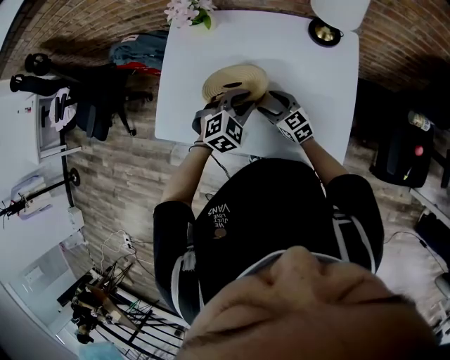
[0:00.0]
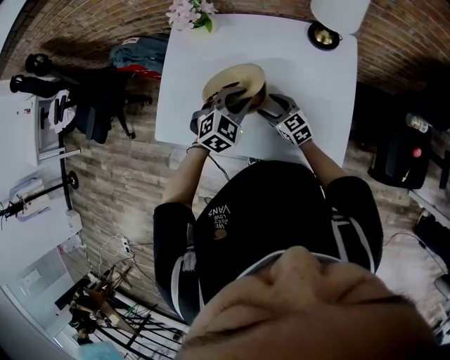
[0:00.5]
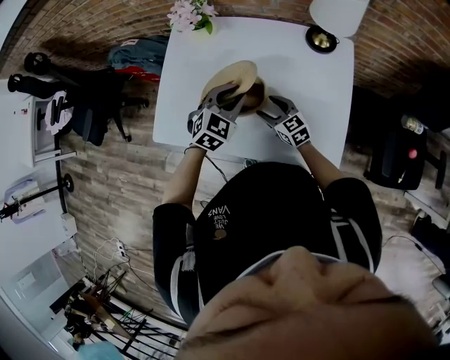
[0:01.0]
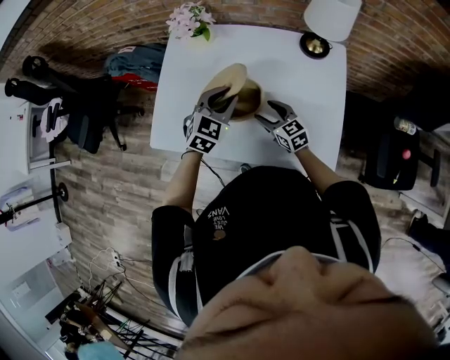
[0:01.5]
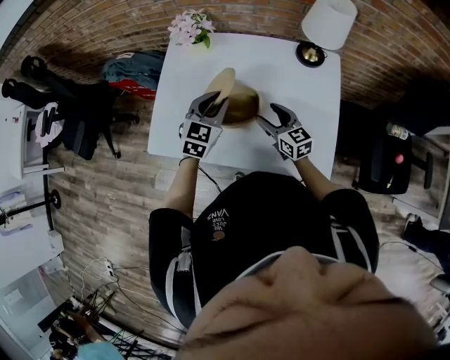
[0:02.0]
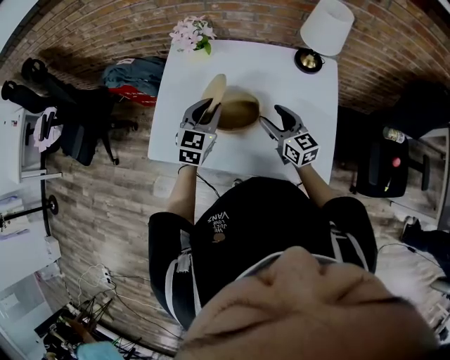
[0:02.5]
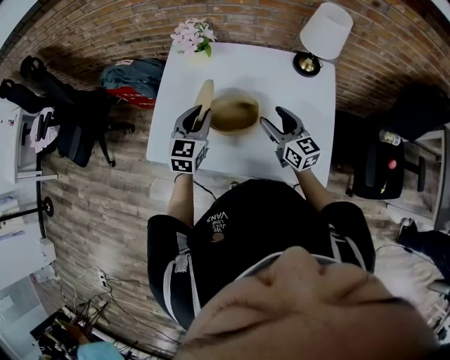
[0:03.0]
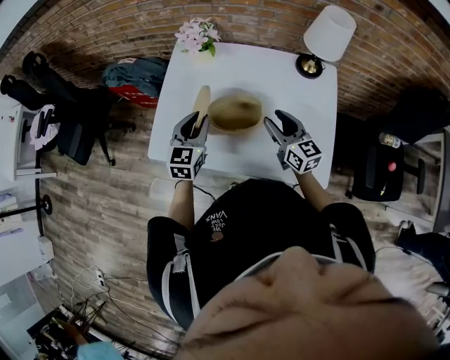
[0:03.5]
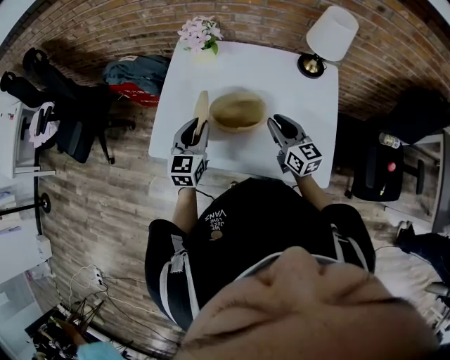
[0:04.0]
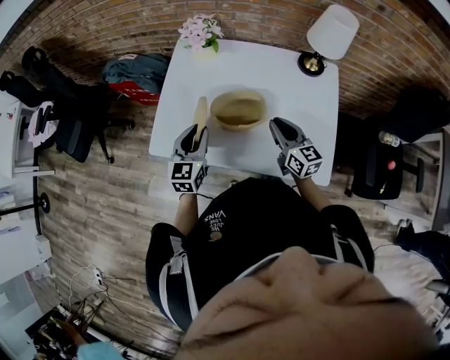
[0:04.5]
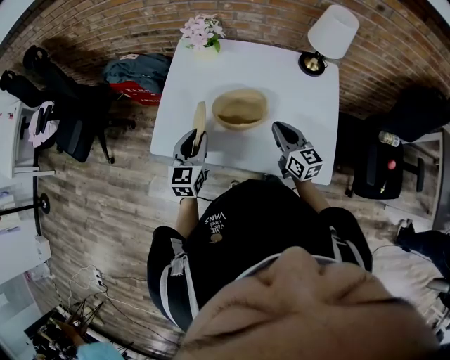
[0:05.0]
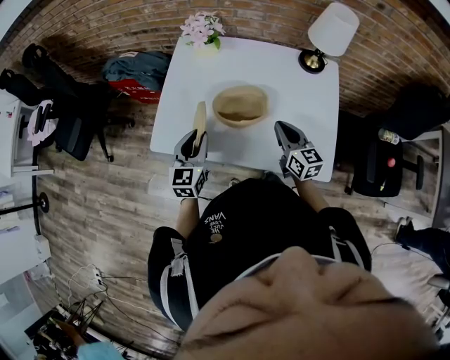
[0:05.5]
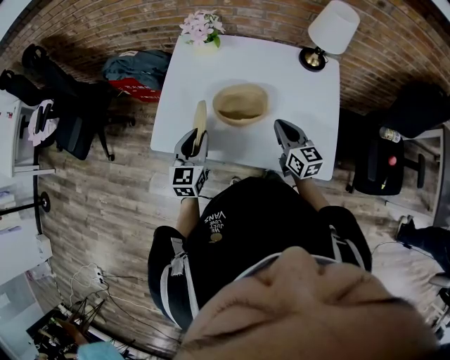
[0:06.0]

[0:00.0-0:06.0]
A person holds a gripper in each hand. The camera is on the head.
0:00.0 to 0:02.0: The right gripper goes roughly 10 cm upward, while the left gripper goes roughly 10 cm upward and to the left, and rotates approximately 30 degrees.
0:02.0 to 0:04.0: The right gripper shifts roughly 5 cm upward, and closes its fingers. Meanwhile the left gripper moves to the left and backward, roughly 10 cm, and rotates roughly 20 degrees.
0:04.0 to 0:06.0: The left gripper shifts about 5 cm backward.

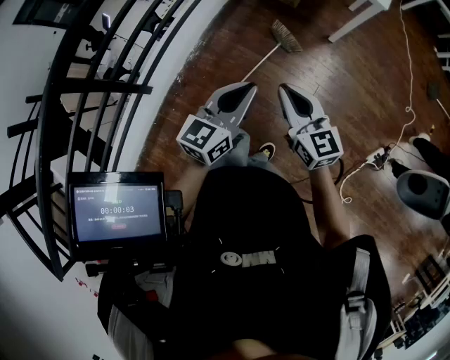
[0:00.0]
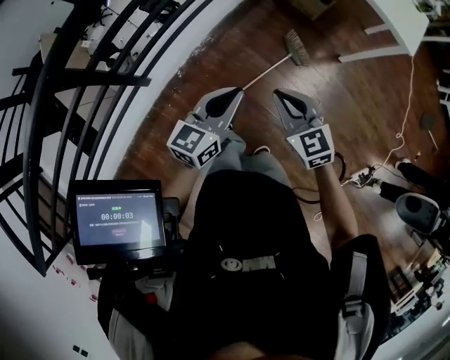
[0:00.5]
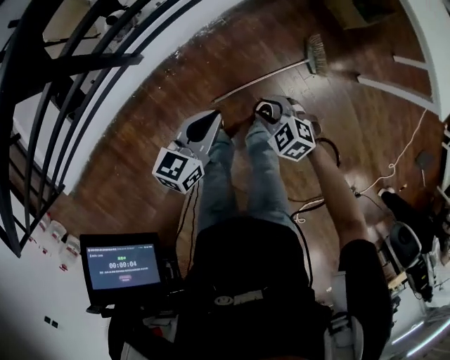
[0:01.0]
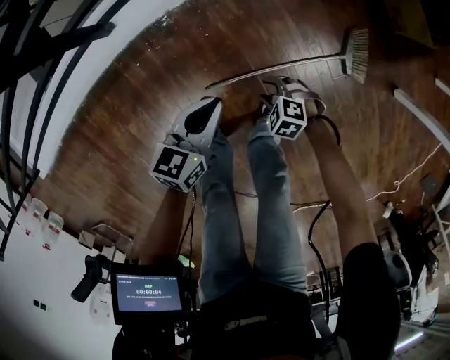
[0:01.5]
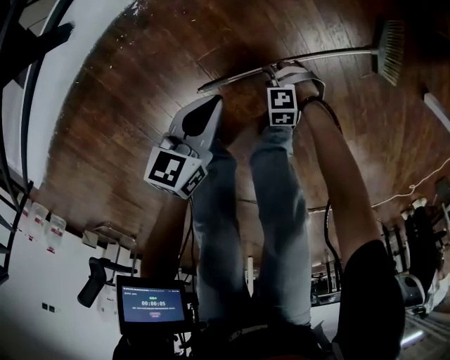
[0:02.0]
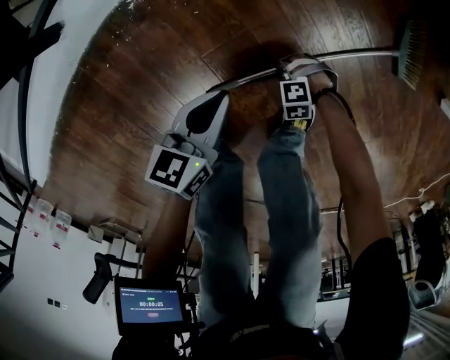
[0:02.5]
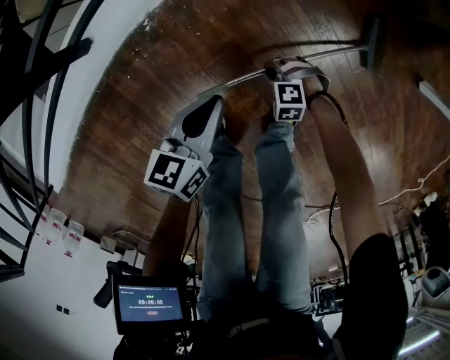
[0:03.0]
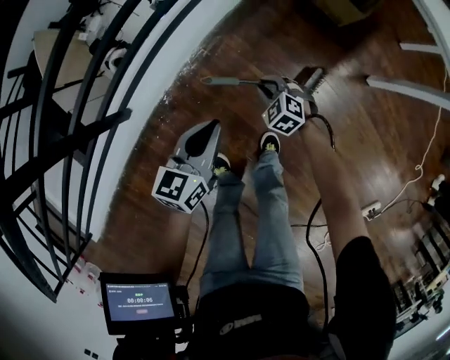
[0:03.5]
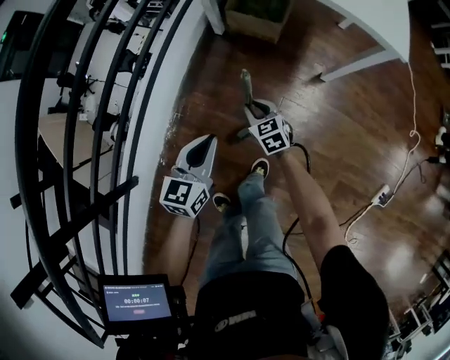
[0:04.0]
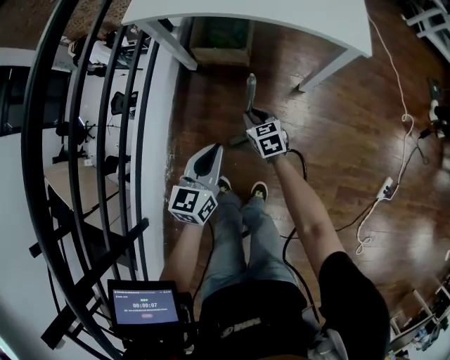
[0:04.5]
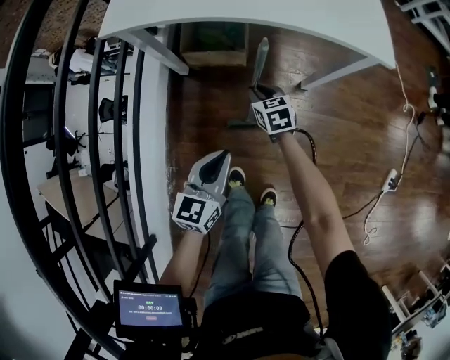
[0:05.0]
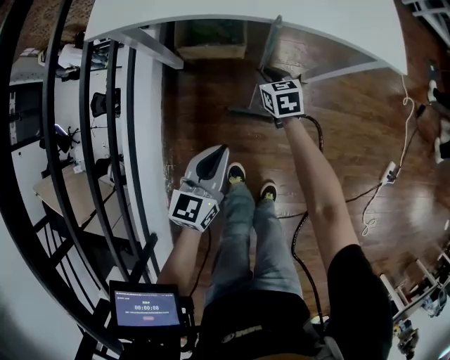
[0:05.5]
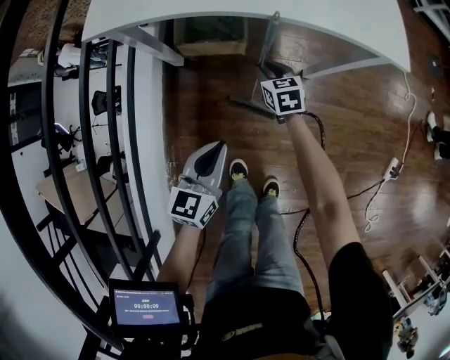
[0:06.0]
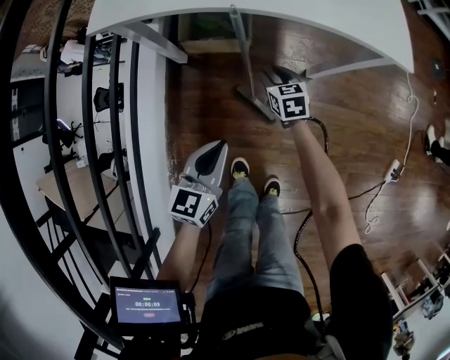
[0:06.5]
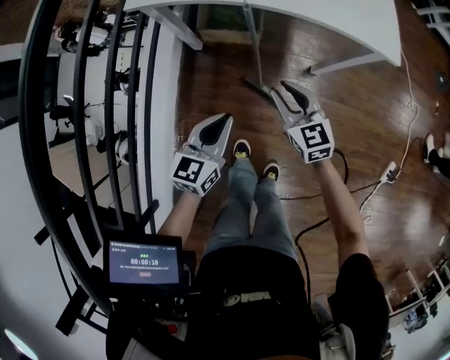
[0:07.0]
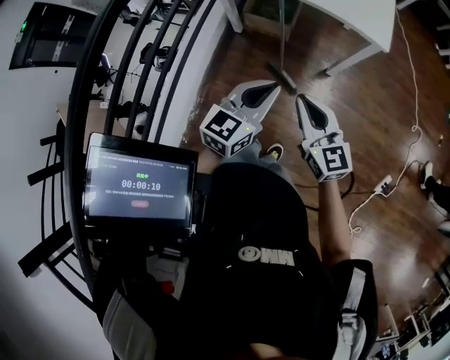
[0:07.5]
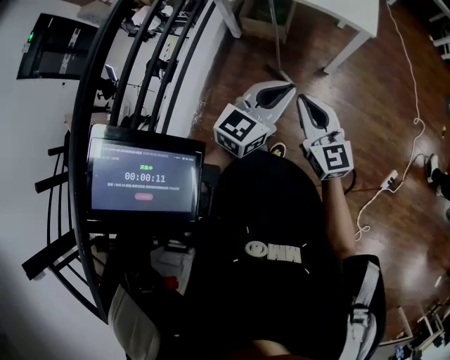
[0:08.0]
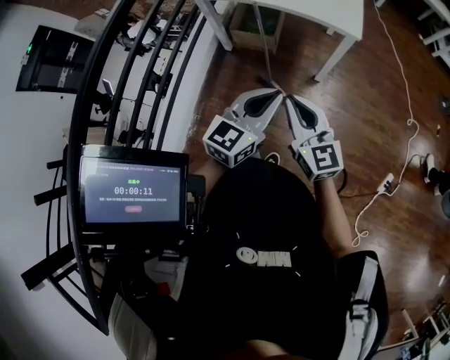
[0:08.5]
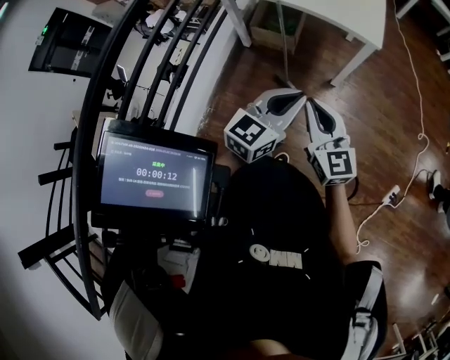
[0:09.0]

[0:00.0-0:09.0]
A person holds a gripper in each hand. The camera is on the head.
0:00.0 to 0:02.0: Both grippers move downward, roughly 80 cm. The left gripper turns by some 50 degrees. Meanwhile the right gripper tilts its fingers about 70 degrees downward, and opens.
0:02.0 to 0:04.5: The pair of grippers is taken approximately 40 cm. Both grippers move upward, approximately 50 cm. The left gripper turns by approximately 50 degrees. The right gripper twists roughly 110 degrees clockwise, seen from behind, and closes.
0:04.5 to 0:07.0: The right gripper shifts some 15 cm upward. The left gripper changes place by roughly 5 cm.
0:07.0 to 0:09.0: The left gripper moves to the right and upward, about 15 cm; the right gripper travels upward by some 10 cm, rotates about 20 degrees, and closes.

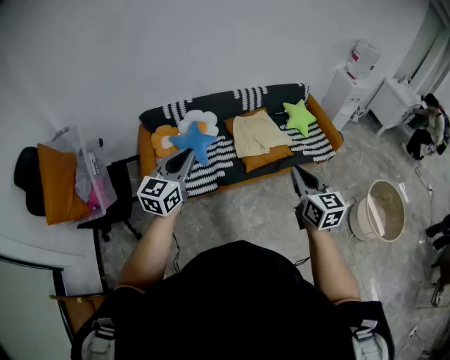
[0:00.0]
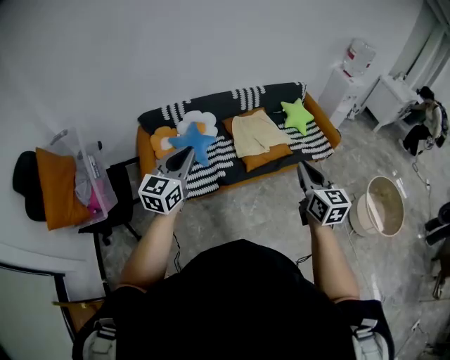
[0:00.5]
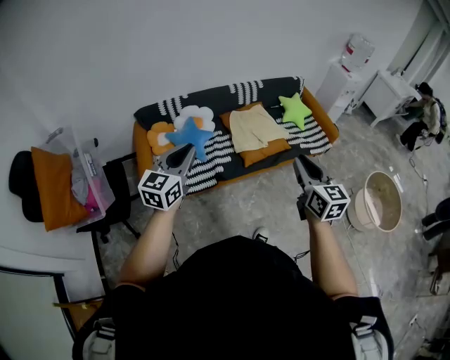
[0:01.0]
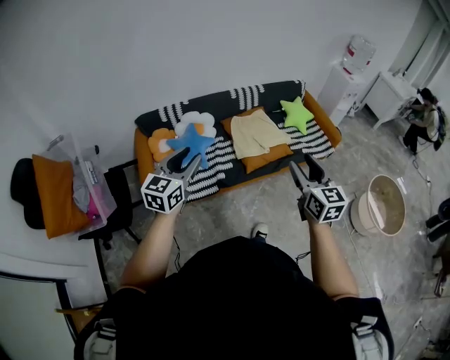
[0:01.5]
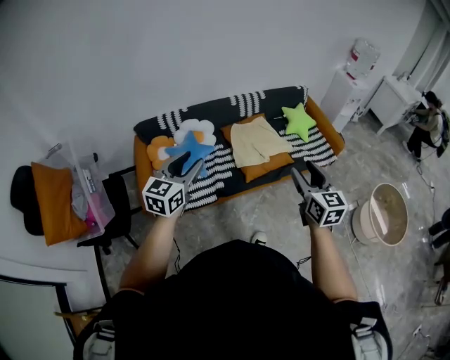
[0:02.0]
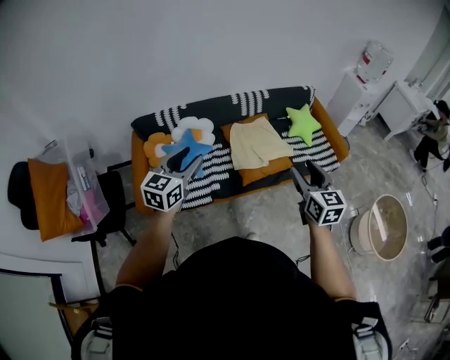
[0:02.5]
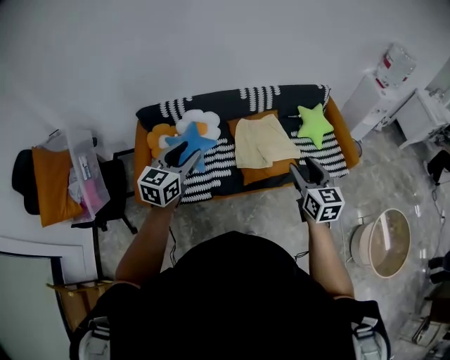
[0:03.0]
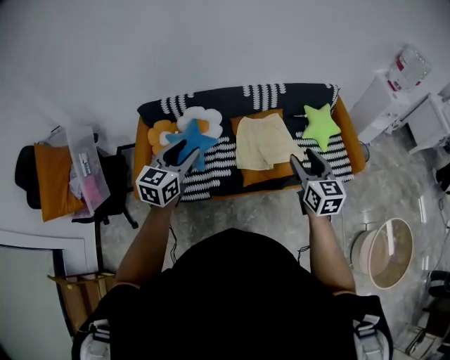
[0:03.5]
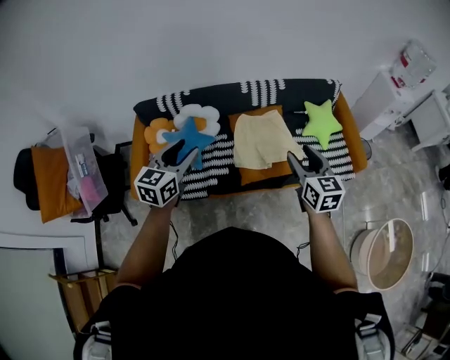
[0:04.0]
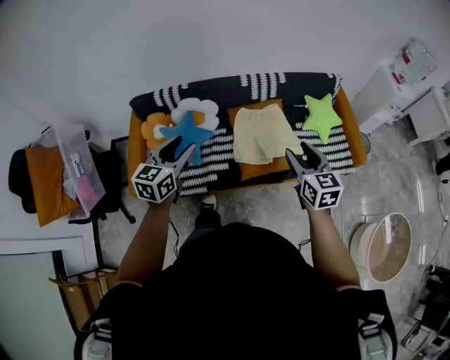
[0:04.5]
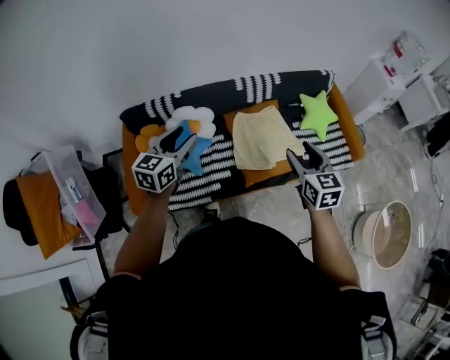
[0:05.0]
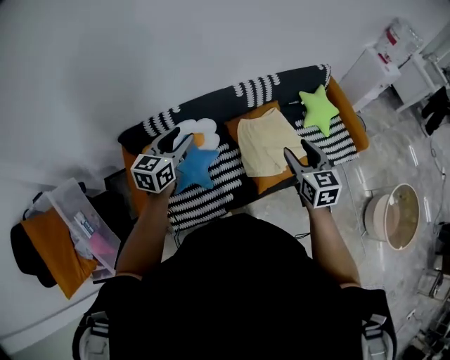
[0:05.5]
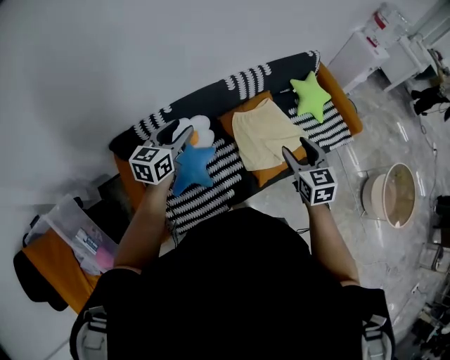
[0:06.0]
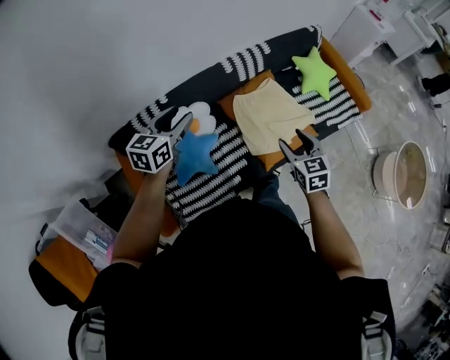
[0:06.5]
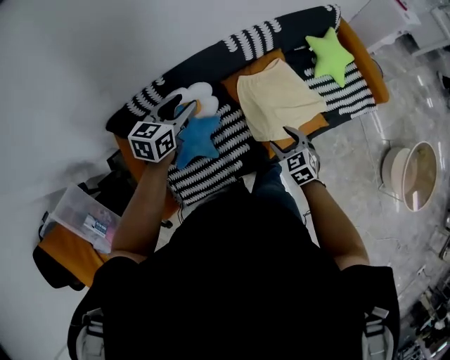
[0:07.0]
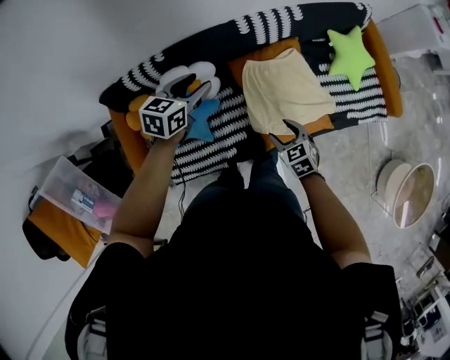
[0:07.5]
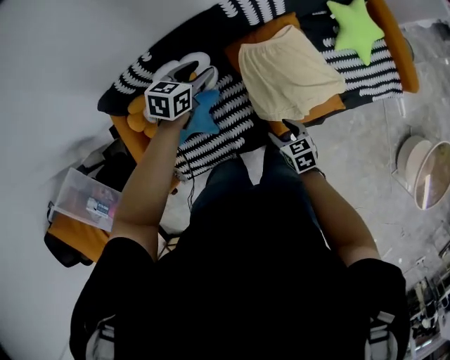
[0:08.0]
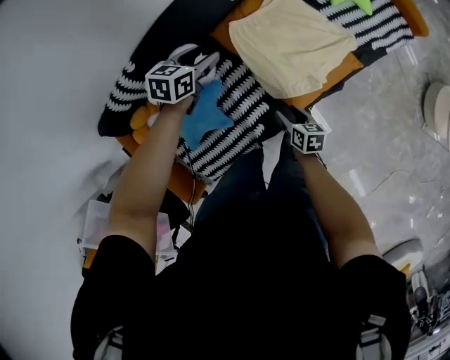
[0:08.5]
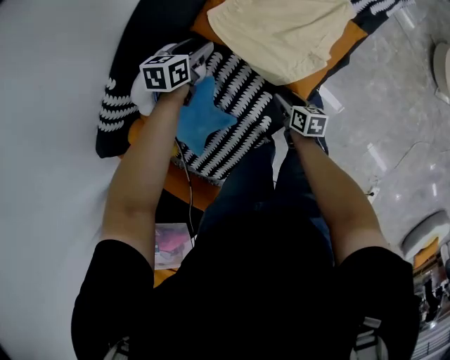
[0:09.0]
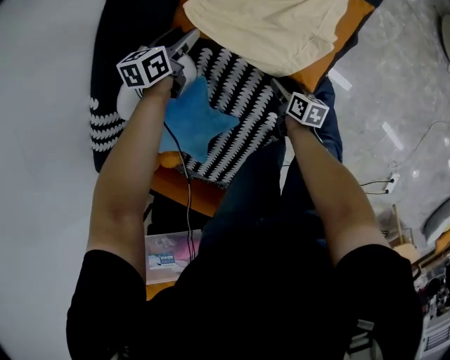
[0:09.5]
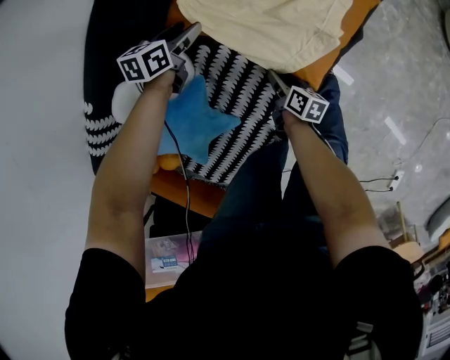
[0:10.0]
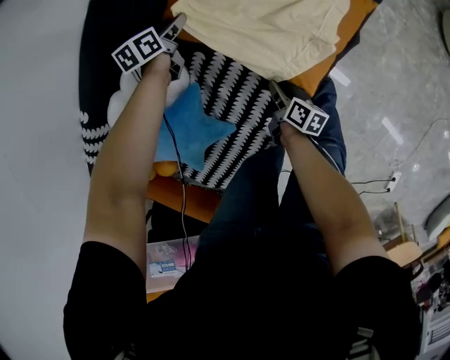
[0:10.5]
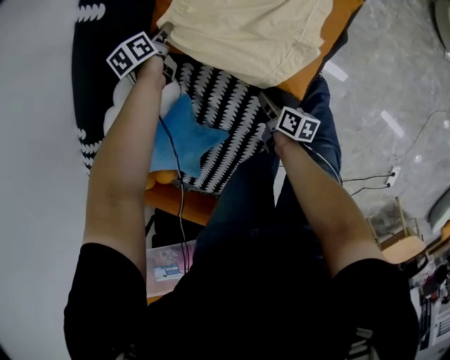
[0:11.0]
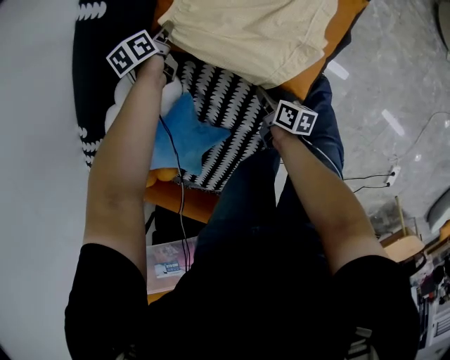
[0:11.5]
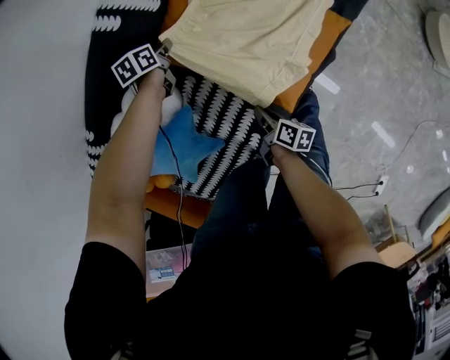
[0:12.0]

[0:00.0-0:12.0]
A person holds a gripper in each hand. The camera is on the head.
0:00.0 to 0:02.0: The two grippers go roughly 10 cm forward. The left gripper opens; the right gripper opens up.
0:02.0 to 0:04.0: The right gripper travels forward by about 30 cm. Meanwhile the left gripper moves forward and to the right, about 25 cm.
0:04.0 to 0:06.0: The right gripper travels to the left and forward by some 20 cm, and swivels about 20 degrees; the left gripper goes roughly 35 cm forward and to the left, and turns by approximately 20 degrees.
0:06.0 to 0:08.0: The left gripper shifts roughly 35 cm downward, forward and to the right, and turns by approximately 30 degrees. Meanwhile the right gripper is displaced downward by roughly 40 cm, and swivels about 40 degrees.
0:08.0 to 0:10.0: Both grippers travel together downward, roughly 30 cm. The right gripper twists about 70 degrees clockwise, seen from behind. Meanwhile the left gripper changes its angle by some 30 degrees.
0:10.0 to 0:12.0: The right gripper moves upward, about 5 cm, and closes its fingers. Meanwhile the left gripper moves forward, approximately 5 cm, changes its angle by about 20 degrees, and closes.
